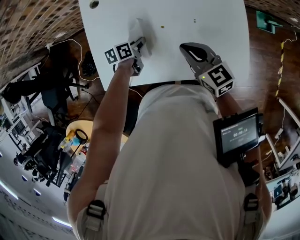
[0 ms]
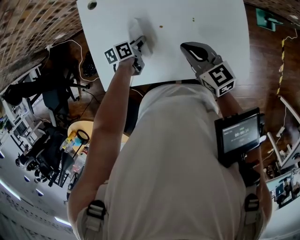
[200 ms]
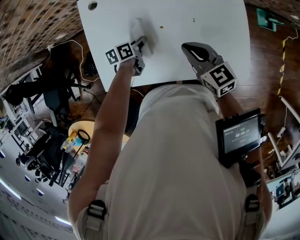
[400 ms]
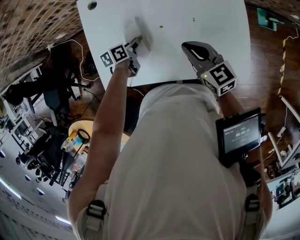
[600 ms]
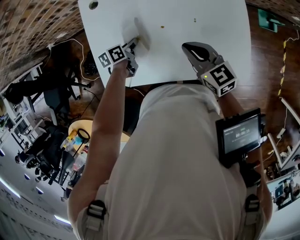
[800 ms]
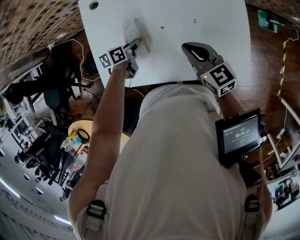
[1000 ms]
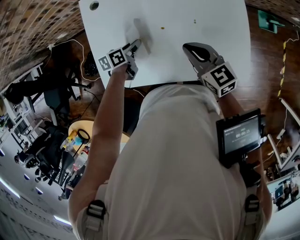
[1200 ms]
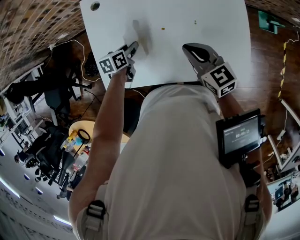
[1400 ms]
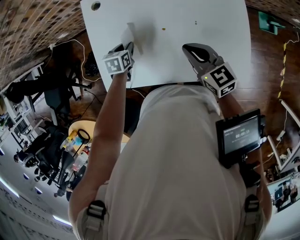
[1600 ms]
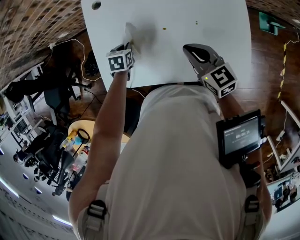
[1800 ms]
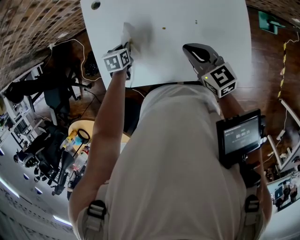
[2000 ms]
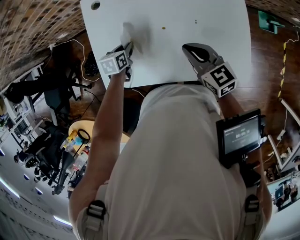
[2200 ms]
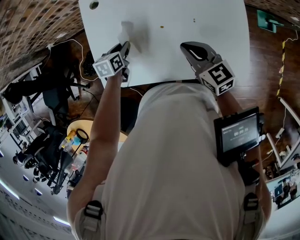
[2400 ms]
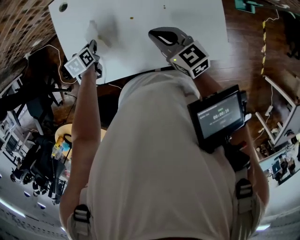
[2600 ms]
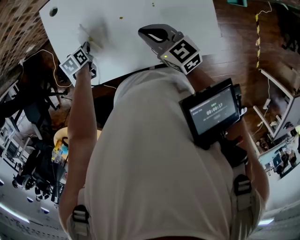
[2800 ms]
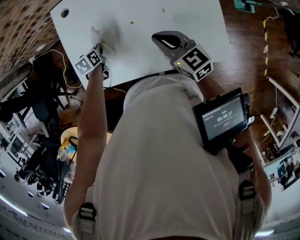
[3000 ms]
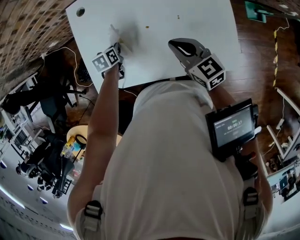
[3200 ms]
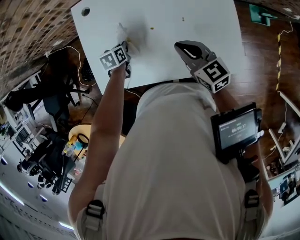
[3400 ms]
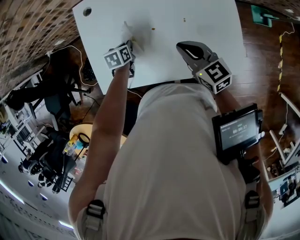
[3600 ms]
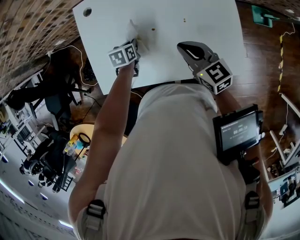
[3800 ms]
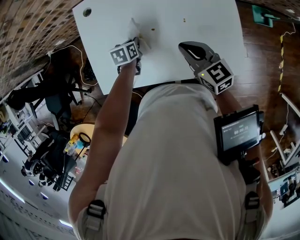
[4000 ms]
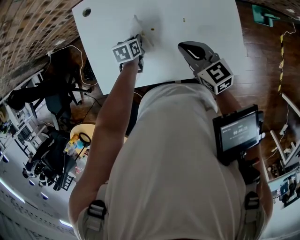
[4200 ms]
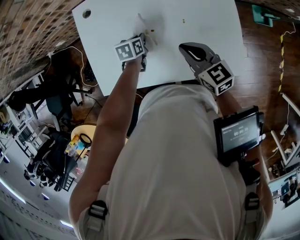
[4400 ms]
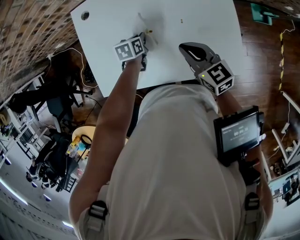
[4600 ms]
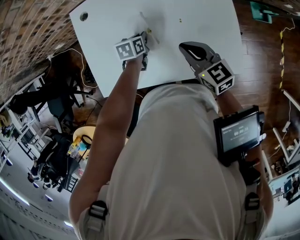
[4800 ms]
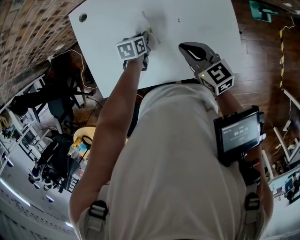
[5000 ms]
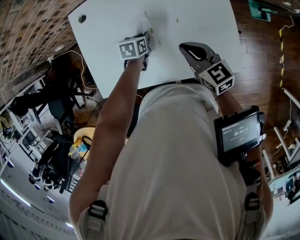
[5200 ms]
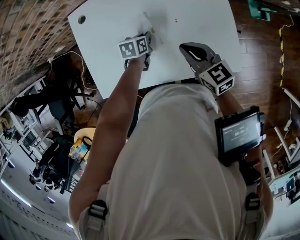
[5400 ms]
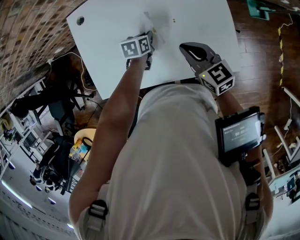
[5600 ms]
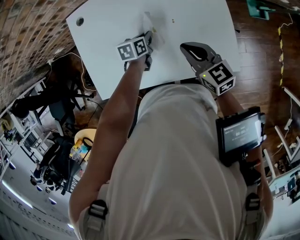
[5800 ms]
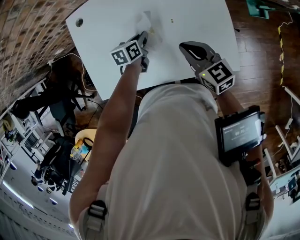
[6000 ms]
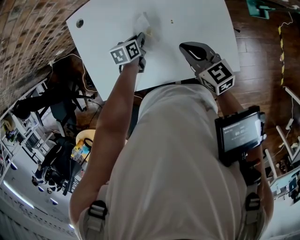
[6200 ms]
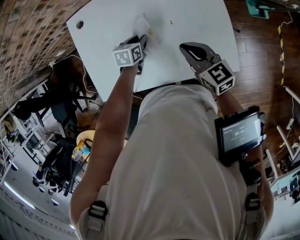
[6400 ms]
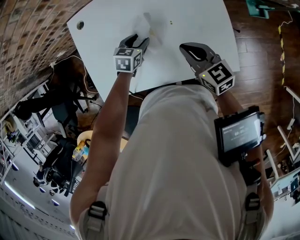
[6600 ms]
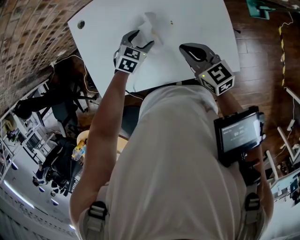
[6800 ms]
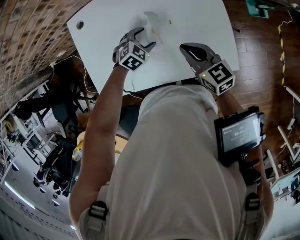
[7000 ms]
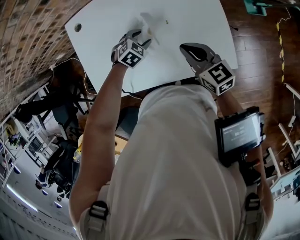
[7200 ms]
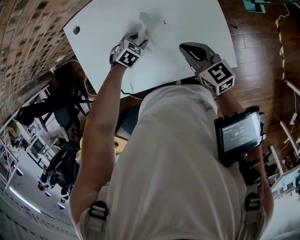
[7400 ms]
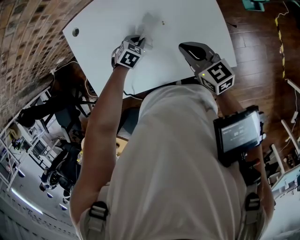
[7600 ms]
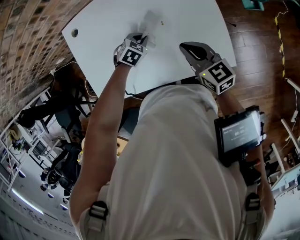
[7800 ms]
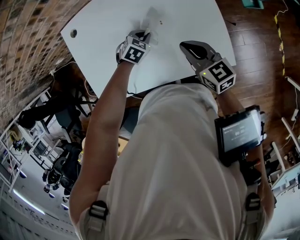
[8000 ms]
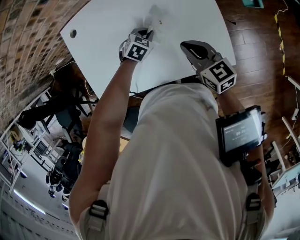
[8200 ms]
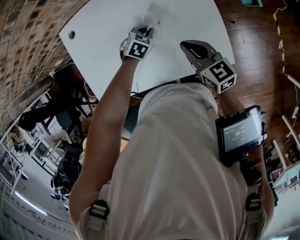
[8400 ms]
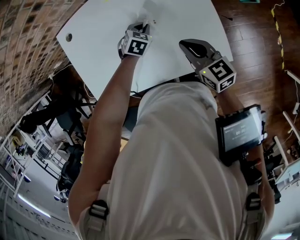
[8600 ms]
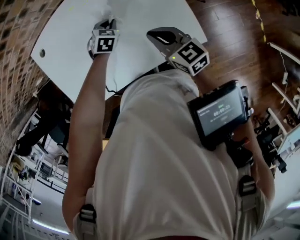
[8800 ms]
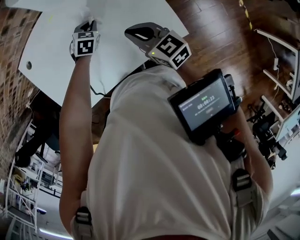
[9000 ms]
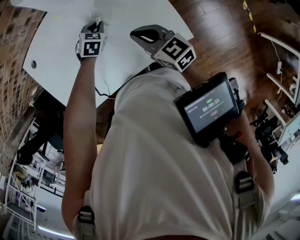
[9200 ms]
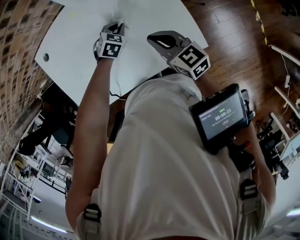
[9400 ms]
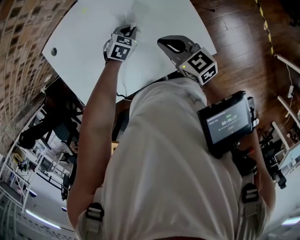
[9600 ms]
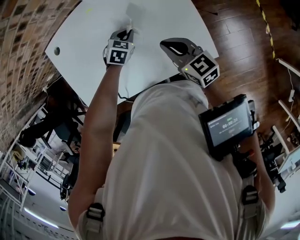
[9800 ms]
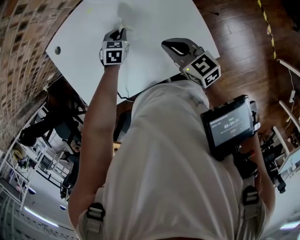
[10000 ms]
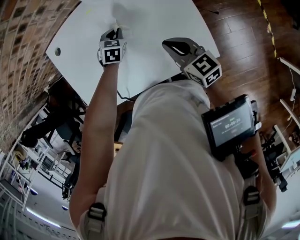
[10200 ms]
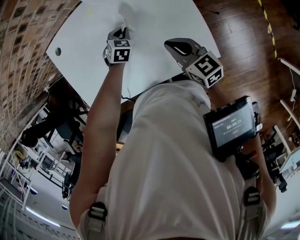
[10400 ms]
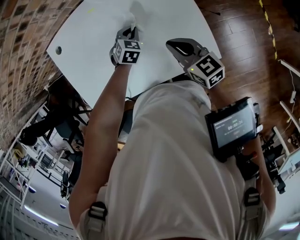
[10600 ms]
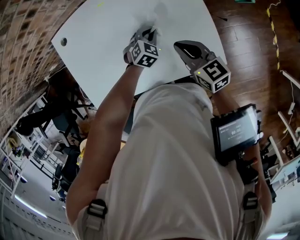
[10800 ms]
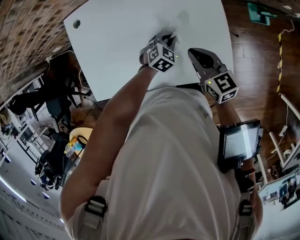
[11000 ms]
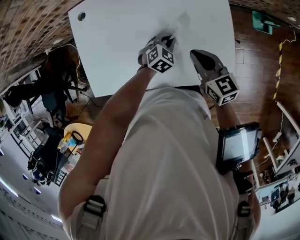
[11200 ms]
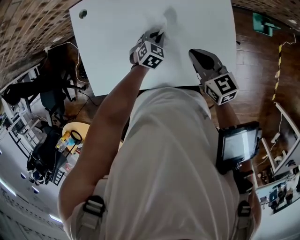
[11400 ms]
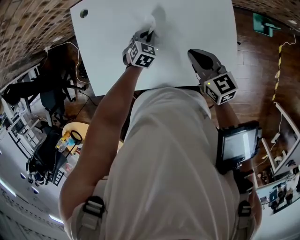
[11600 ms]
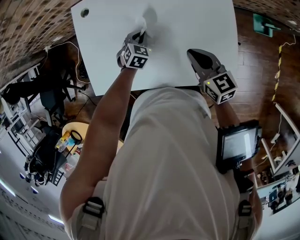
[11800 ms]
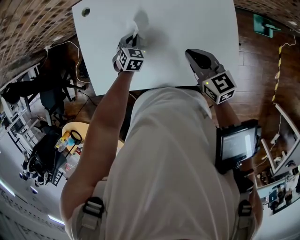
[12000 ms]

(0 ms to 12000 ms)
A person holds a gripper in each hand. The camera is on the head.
0 ms - 1600 ms: The left gripper is displaced to the left by roughly 5 cm, and swivels some 30 degrees.
1600 ms - 3000 ms: There are only small adjustments of the grippers.
3000 ms - 4400 ms: The left gripper shifts some 15 cm to the right.
6000 ms - 7600 ms: The left gripper rotates around the line of its fingers by some 60 degrees, clockwise from behind, and opens, then closes once more.
7600 ms - 9000 ms: The left gripper shifts approximately 10 cm to the right and forward.
10400 ms - 12000 ms: The left gripper moves to the left, some 15 cm. The right gripper goes some 5 cm to the left.

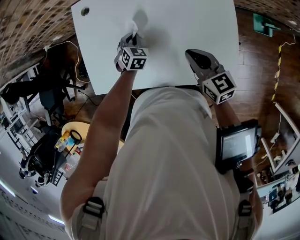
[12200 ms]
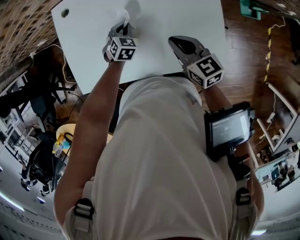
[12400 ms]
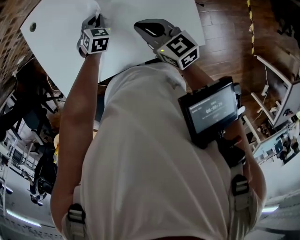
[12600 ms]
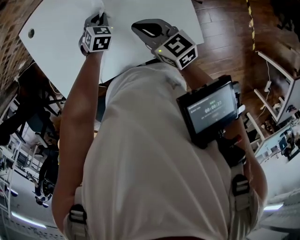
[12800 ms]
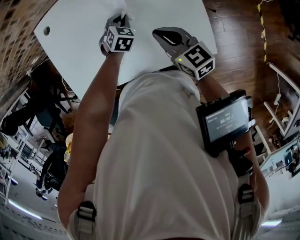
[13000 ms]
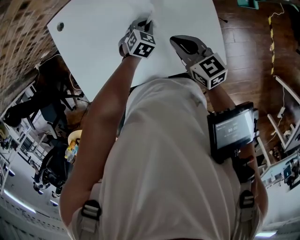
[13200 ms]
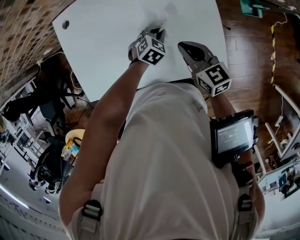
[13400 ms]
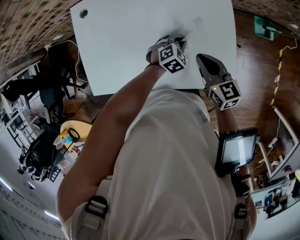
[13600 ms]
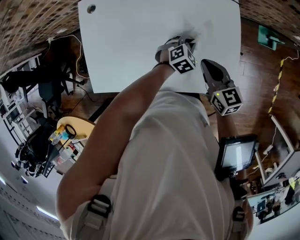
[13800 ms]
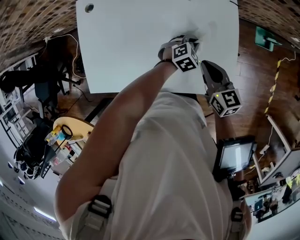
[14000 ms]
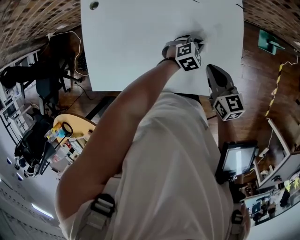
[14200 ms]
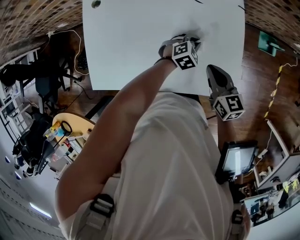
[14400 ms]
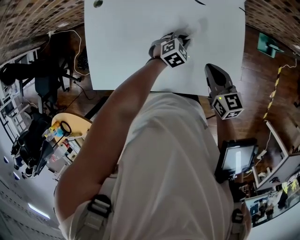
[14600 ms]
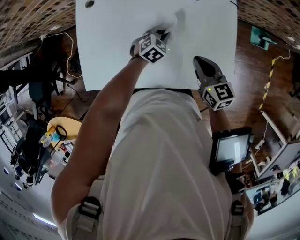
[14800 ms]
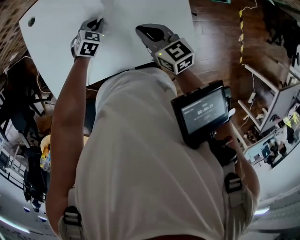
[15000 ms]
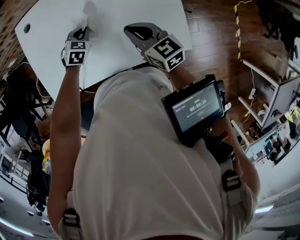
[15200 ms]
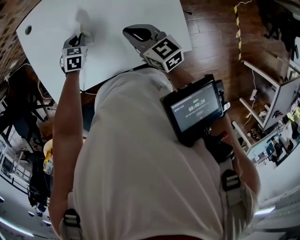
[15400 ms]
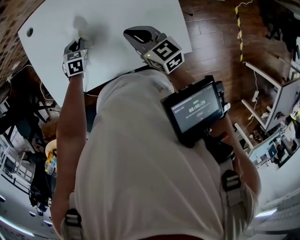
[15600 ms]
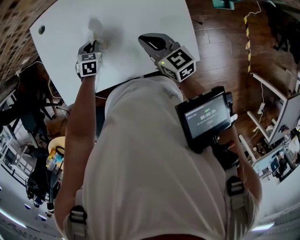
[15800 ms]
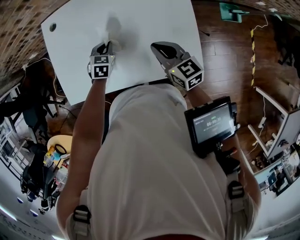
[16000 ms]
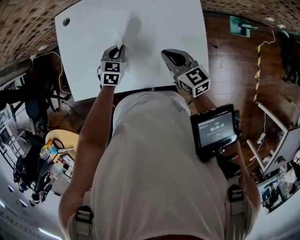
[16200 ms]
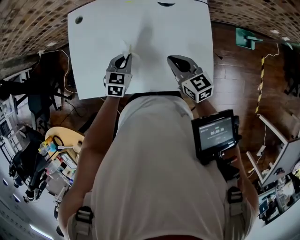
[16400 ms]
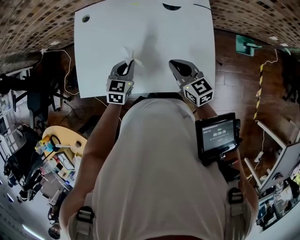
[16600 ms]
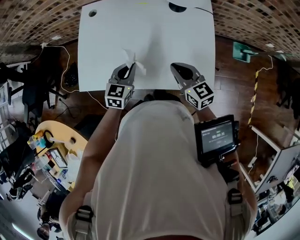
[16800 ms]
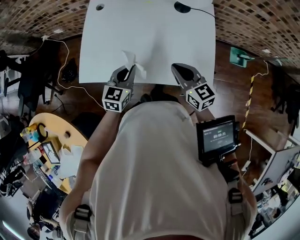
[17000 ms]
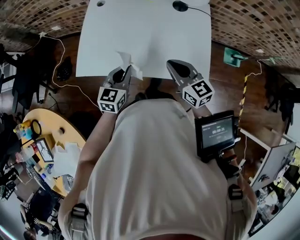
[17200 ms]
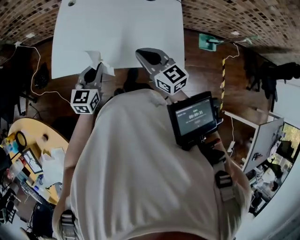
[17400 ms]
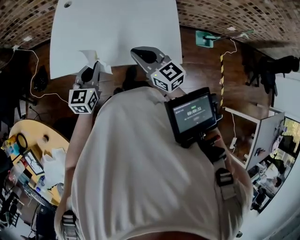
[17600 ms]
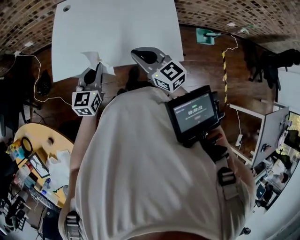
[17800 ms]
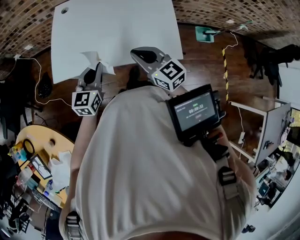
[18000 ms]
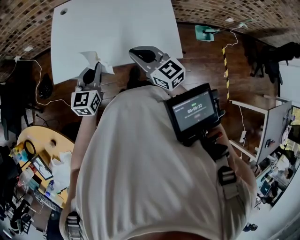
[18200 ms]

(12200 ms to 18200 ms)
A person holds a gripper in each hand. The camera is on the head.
12200 ms - 13800 ms: The left gripper changes place by about 25 cm, and rotates approximately 30 degrees; the right gripper shifts by some 5 cm.
13800 ms - 15200 ms: The right gripper goes approximately 5 cm to the left. Meanwhile the left gripper heads to the left, covering approximately 20 cm.
15200 ms - 16600 ms: The left gripper shifts roughly 10 cm upward and backward, and rotates approximately 30 degrees.
16600 ms - 18200 ms: The left gripper moves upward and backward, some 10 cm, and rotates about 20 degrees. Meanwhile the right gripper is displaced upward by roughly 5 cm.

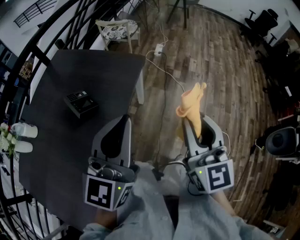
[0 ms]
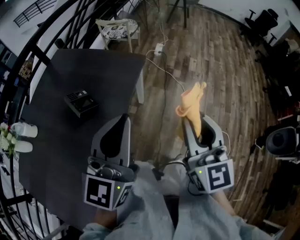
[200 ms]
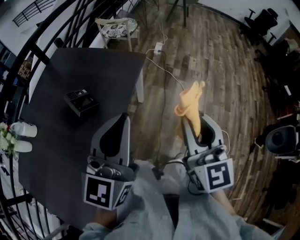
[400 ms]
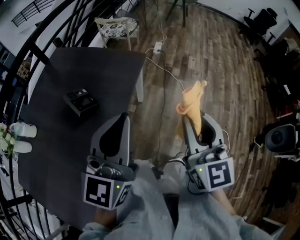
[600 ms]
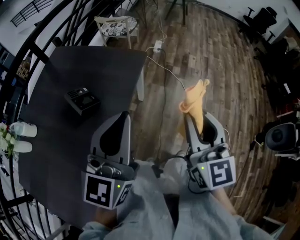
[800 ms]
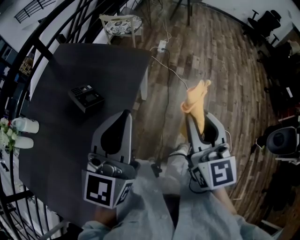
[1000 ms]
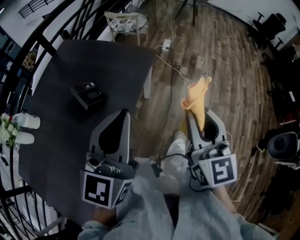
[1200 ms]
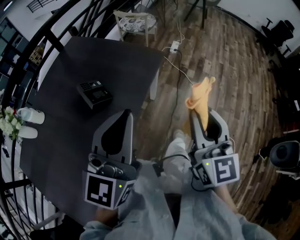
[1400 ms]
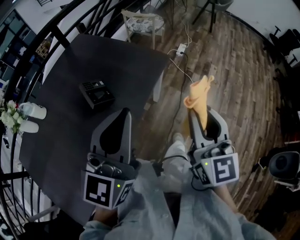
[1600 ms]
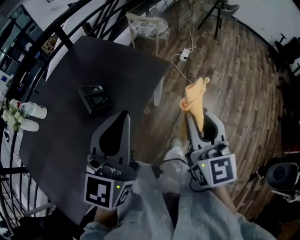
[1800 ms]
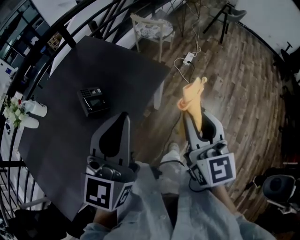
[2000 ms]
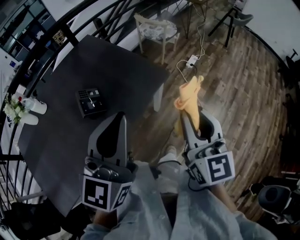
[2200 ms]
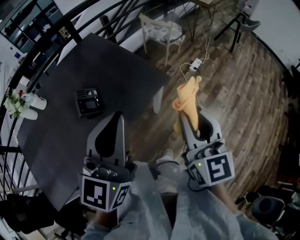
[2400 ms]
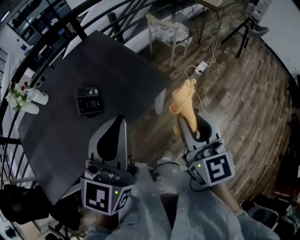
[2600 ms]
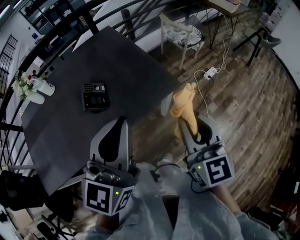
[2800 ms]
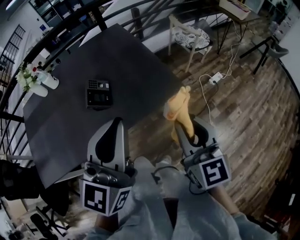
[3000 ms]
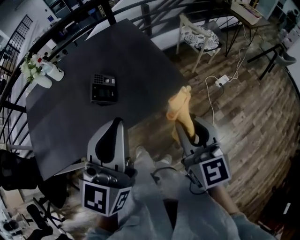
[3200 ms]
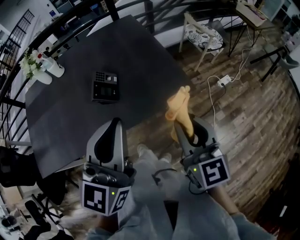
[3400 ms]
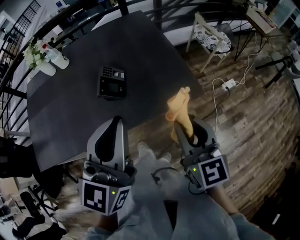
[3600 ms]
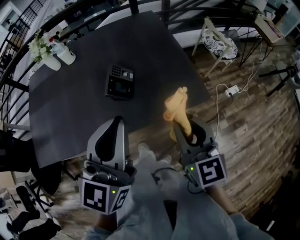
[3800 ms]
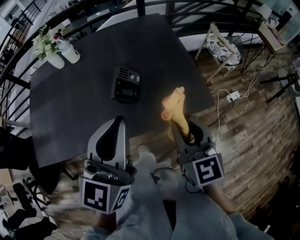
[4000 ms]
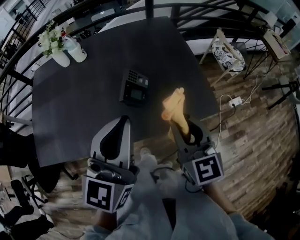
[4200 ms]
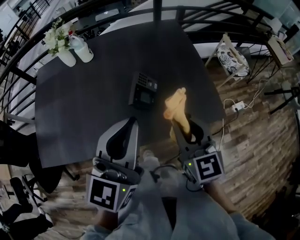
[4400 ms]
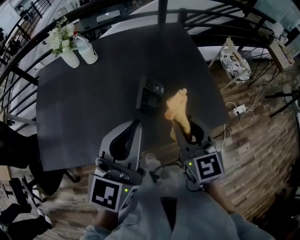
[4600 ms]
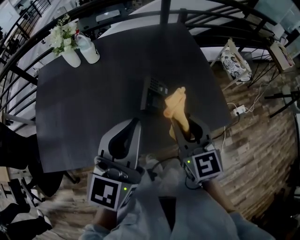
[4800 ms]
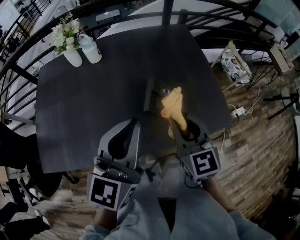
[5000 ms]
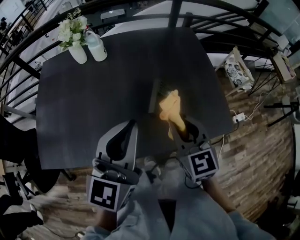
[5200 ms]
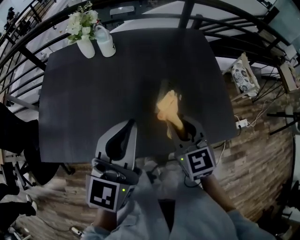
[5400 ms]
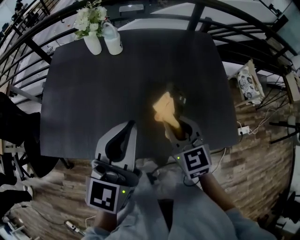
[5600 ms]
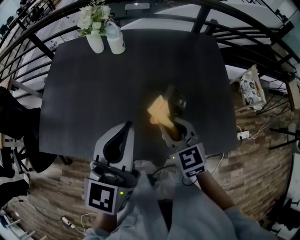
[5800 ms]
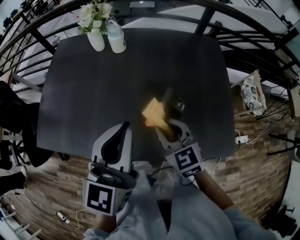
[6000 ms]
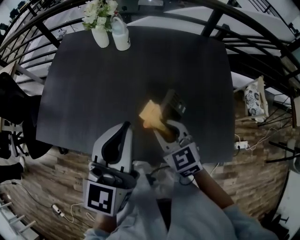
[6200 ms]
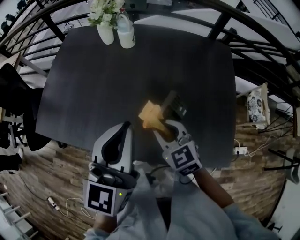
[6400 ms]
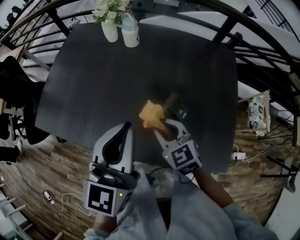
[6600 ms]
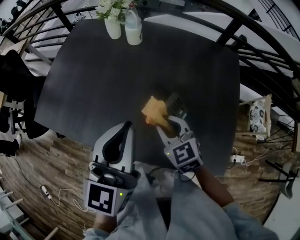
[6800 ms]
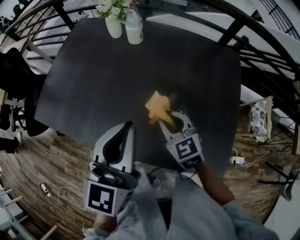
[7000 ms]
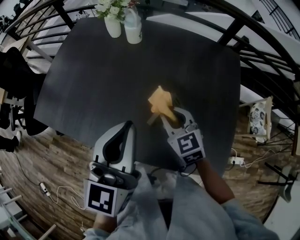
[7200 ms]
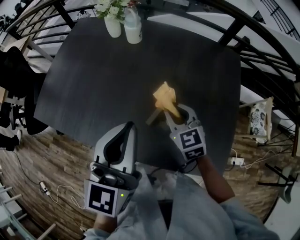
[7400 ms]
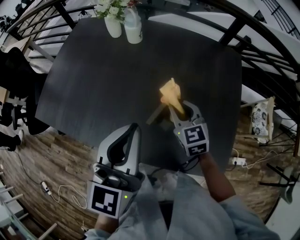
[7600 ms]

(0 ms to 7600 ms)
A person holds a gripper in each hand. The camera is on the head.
0 ms - 1600 ms: The left gripper moves some 5 cm. Meanwhile the right gripper heads forward, covering roughly 5 cm.
1600 ms - 3000 ms: The right gripper changes place by about 15 cm, and swivels roughly 40 degrees. The left gripper ends up roughly 10 cm from where it was, and rotates approximately 30 degrees.
3000 ms - 4600 ms: Both grippers travel together to the left and forward, roughly 25 cm.
4600 ms - 6000 ms: The right gripper travels to the left, downward and forward by some 15 cm, and swivels approximately 30 degrees. Meanwhile the left gripper shifts approximately 10 cm to the left and forward, and turns by about 20 degrees.
6000 ms - 7600 ms: The right gripper goes some 10 cm to the right and forward. The left gripper moves to the right, some 5 cm.
